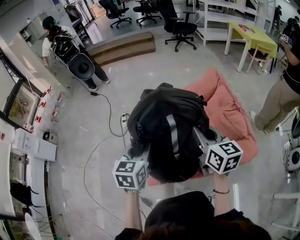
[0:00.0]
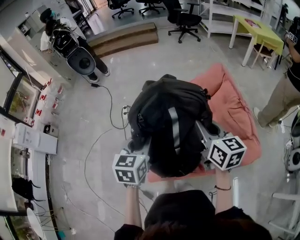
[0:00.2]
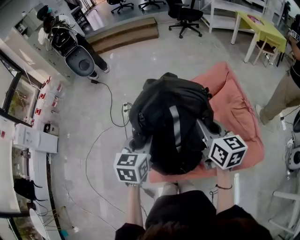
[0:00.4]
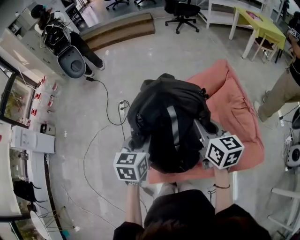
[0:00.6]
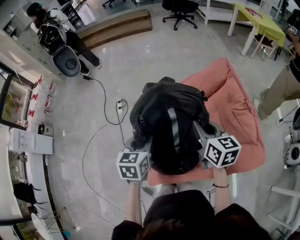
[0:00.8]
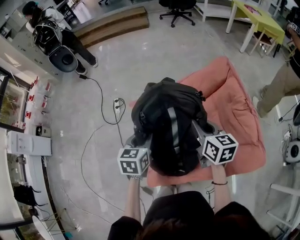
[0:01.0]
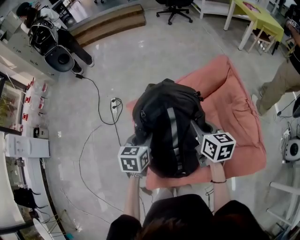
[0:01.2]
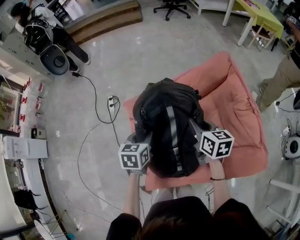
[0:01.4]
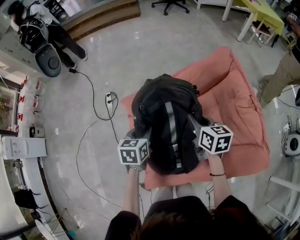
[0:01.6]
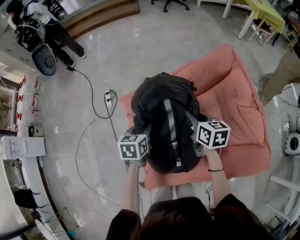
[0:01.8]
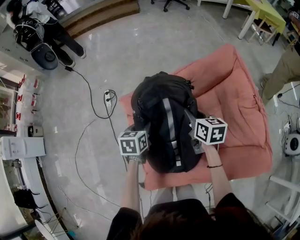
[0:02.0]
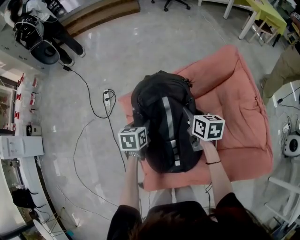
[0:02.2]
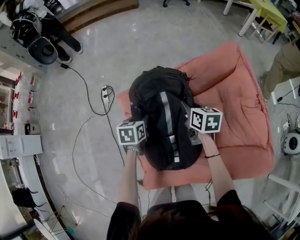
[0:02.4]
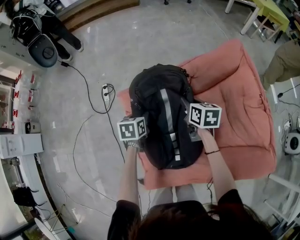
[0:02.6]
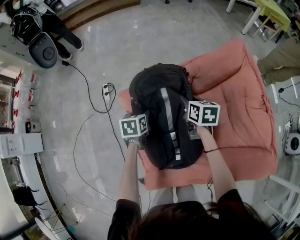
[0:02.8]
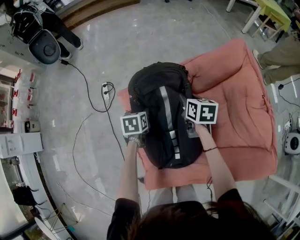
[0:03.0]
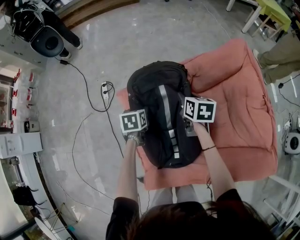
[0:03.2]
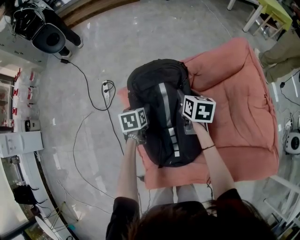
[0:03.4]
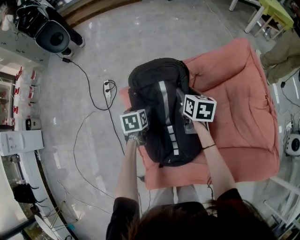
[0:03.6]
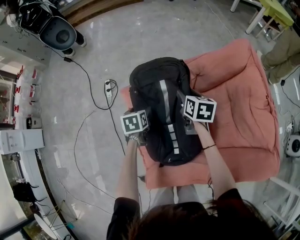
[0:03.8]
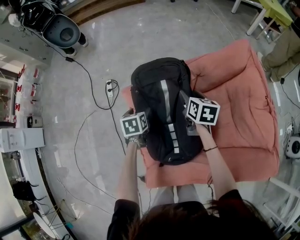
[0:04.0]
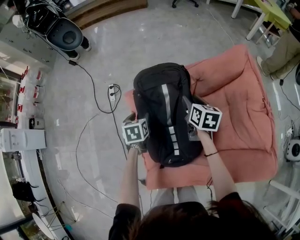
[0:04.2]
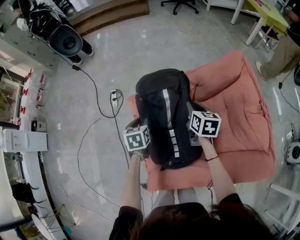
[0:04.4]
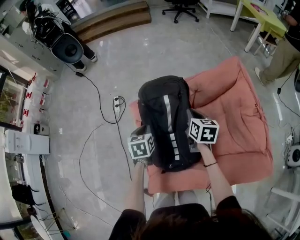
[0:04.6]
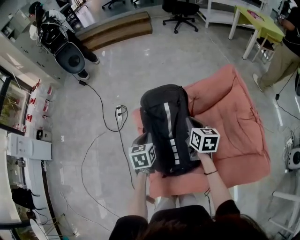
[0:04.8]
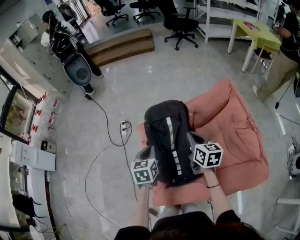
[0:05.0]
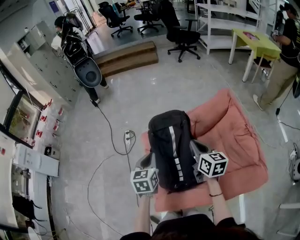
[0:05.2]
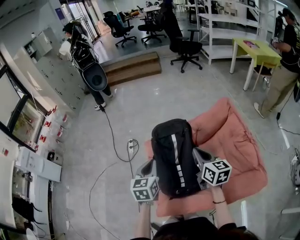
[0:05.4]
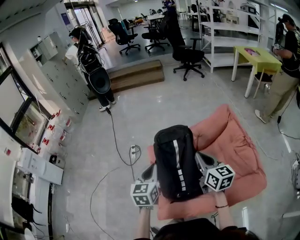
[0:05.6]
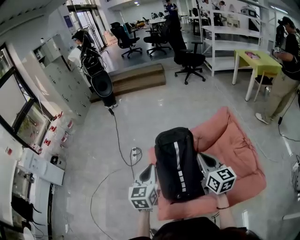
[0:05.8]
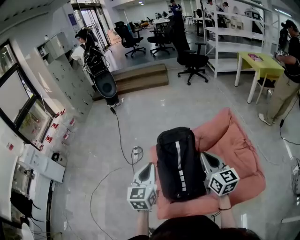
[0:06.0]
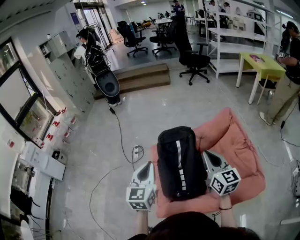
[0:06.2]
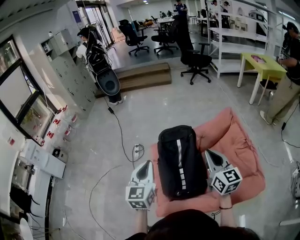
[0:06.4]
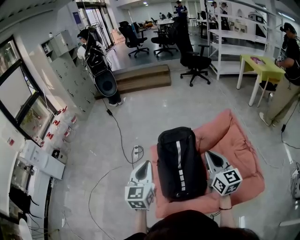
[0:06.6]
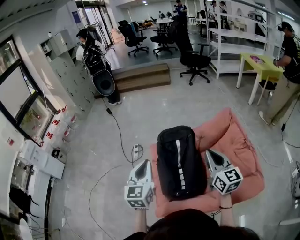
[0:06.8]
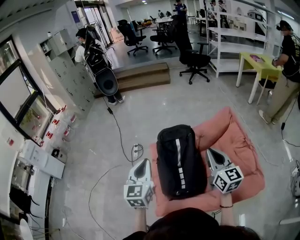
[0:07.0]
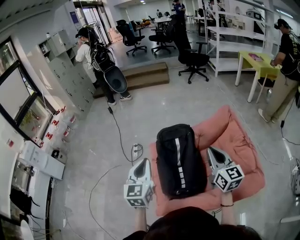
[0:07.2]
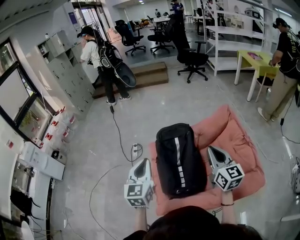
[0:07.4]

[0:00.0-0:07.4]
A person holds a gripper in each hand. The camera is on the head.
0.0 to 1.4 s: The two grippers go approximately 25 cm downward and forward.
1.4 to 3.0 s: The grippers both shift downward and forward by some 15 cm.
3.0 to 4.4 s: The left gripper shifts by about 5 cm, and opens, then closes again. The right gripper moves roughly 5 cm, and opens, then closes once more.
4.4 to 6.0 s: The grippers both shift upward and backward by approximately 35 cm. The left gripper points its fingers some 40 degrees further upward, and closes up. The right gripper tilts its fingers approximately 30 degrees upward.
6.0 to 7.4 s: There are only small adjustments of the grippers.

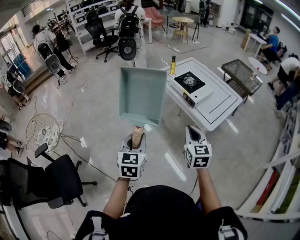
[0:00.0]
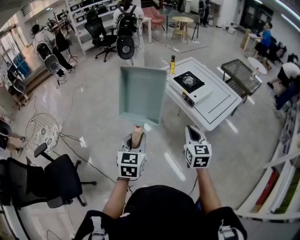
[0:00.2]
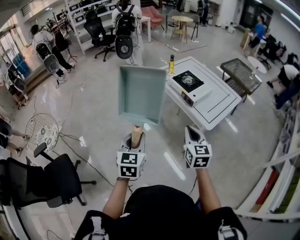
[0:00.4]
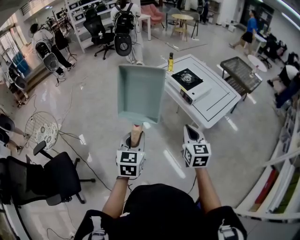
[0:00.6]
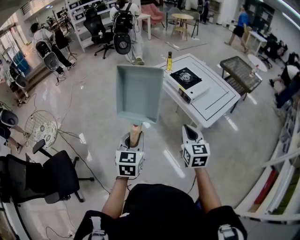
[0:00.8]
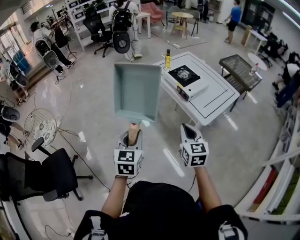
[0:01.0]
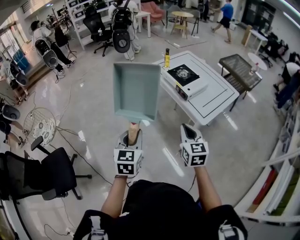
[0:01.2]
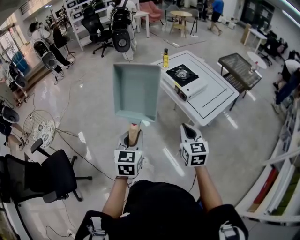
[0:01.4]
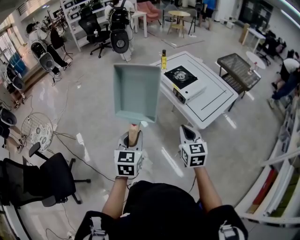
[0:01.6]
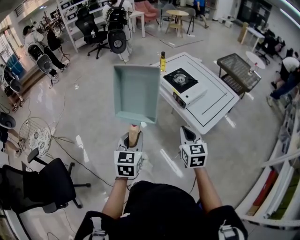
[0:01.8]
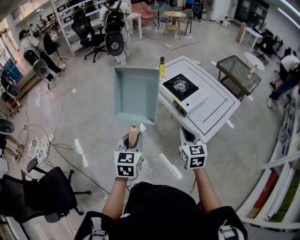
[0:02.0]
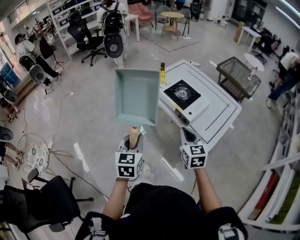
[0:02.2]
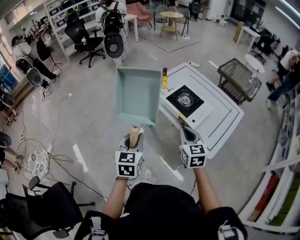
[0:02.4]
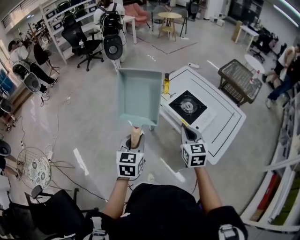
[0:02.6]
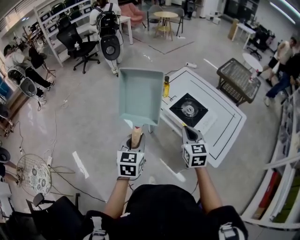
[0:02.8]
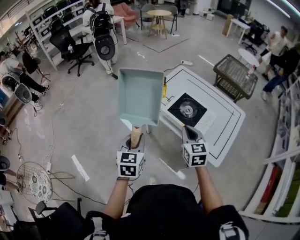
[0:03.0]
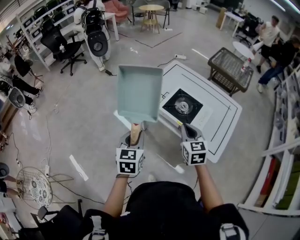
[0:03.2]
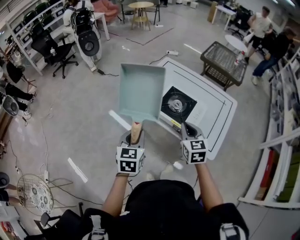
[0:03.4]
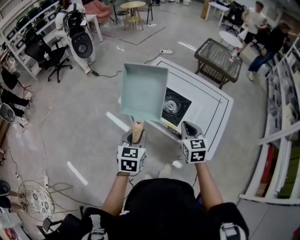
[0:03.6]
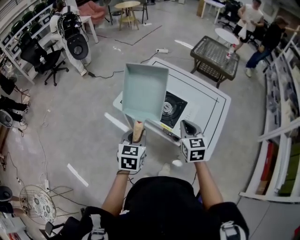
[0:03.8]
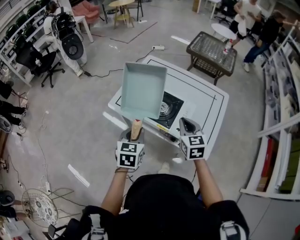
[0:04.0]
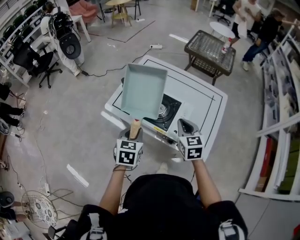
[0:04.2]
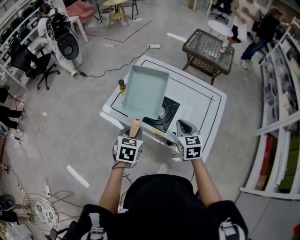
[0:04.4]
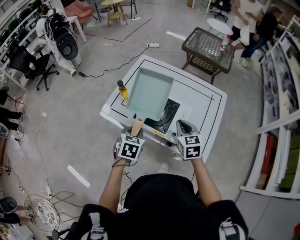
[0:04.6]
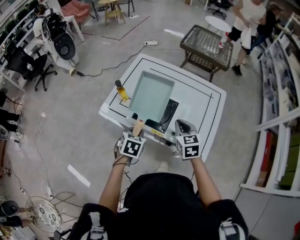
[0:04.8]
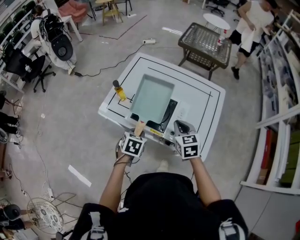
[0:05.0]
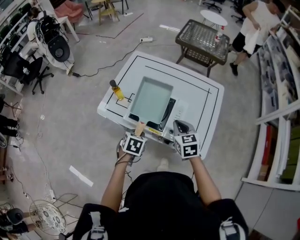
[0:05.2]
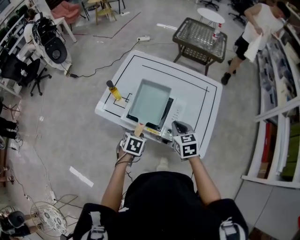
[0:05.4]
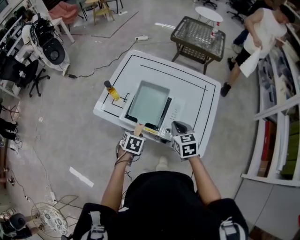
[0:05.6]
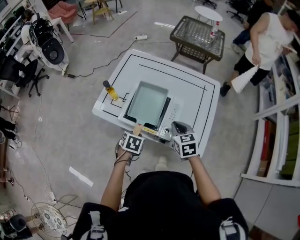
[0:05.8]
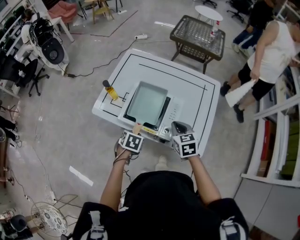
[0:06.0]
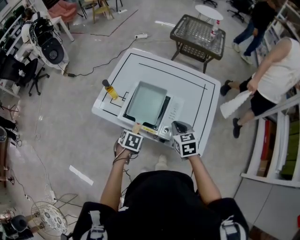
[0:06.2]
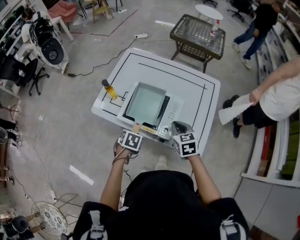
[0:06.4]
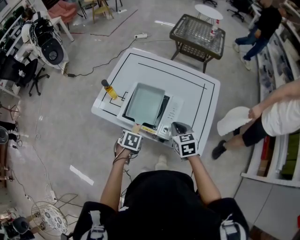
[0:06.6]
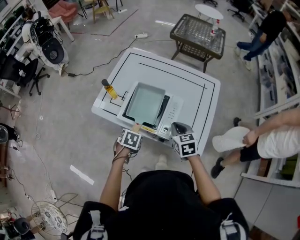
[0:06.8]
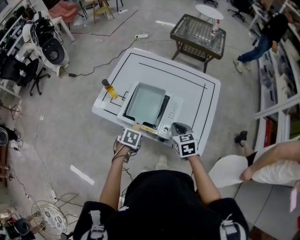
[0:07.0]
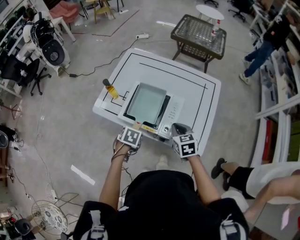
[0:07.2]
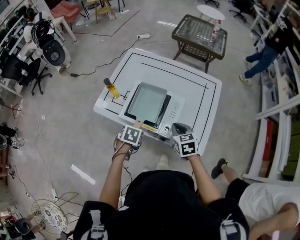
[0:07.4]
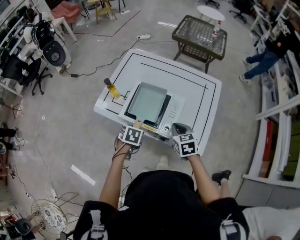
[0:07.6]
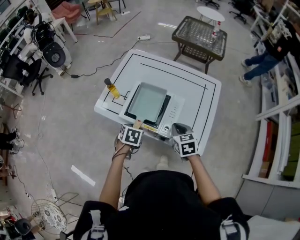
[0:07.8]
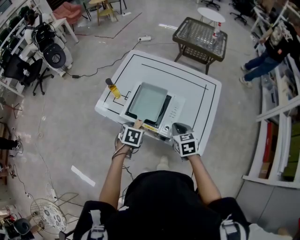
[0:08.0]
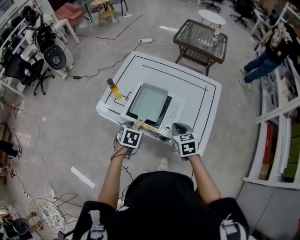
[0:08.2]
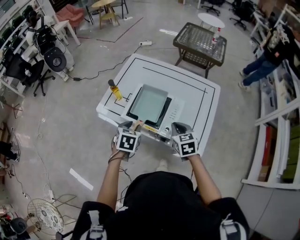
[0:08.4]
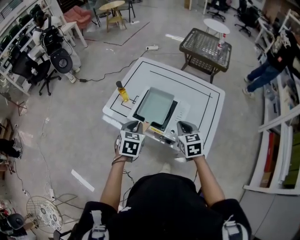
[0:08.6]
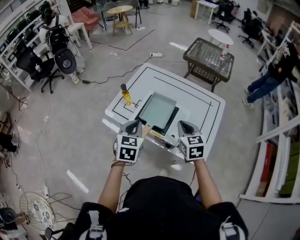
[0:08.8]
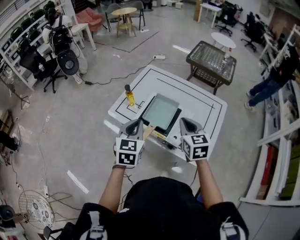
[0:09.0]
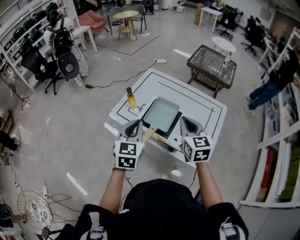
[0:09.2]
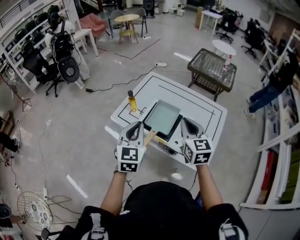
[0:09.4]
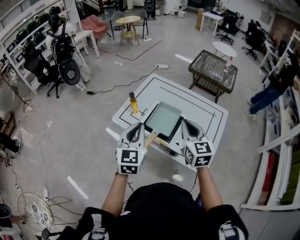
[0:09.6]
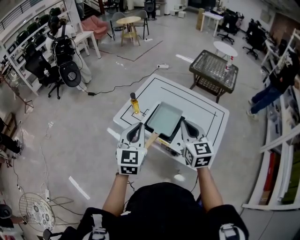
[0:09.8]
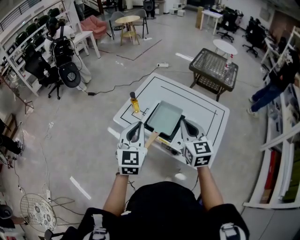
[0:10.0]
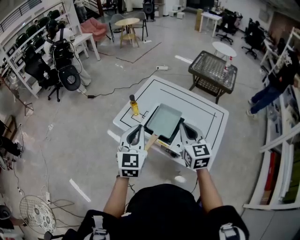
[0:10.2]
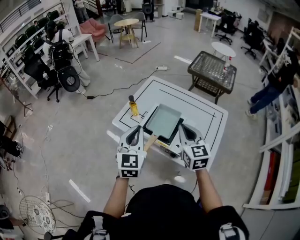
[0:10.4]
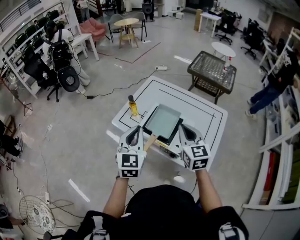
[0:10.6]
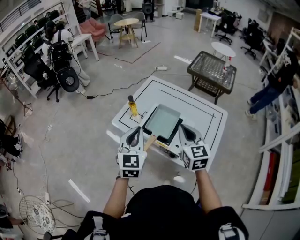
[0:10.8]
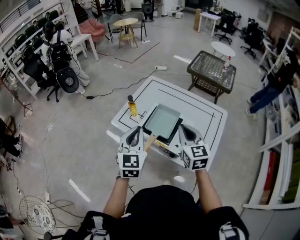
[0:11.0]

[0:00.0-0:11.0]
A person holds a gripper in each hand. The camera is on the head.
0.0 to 1.6 s: Both grippers move to the right, some 5 cm.
1.6 to 3.2 s: Both grippers travel together forward, roughly 35 cm.
3.2 to 4.8 s: The right gripper is displaced to the right, forward and downward by about 15 cm. The left gripper travels forward, to the right and downward by about 25 cm, and changes its angle by about 40 degrees.
4.8 to 6.2 s: The right gripper shifts by about 5 cm, while the left gripper heads downward, covering some 10 cm.
6.2 to 7.8 s: The left gripper opens up.
7.8 to 9.4 s: The two grippers go some 25 cm upward. The left gripper angles its fingers upward, by approximately 50 degrees, and closes up. Meanwhile the right gripper swivels roughly 30 degrees.
9.4 to 11.0 s: There are only small adjustments of the grippers.

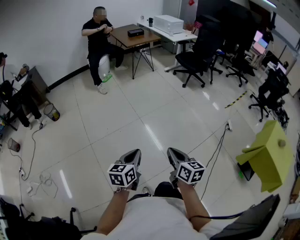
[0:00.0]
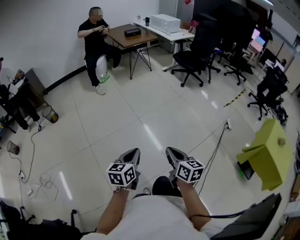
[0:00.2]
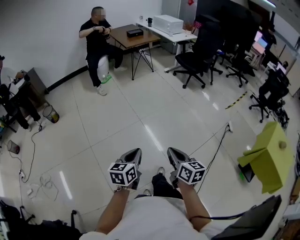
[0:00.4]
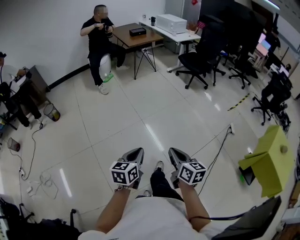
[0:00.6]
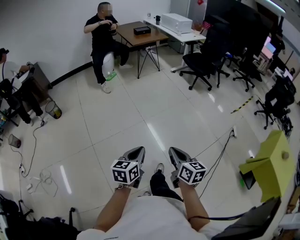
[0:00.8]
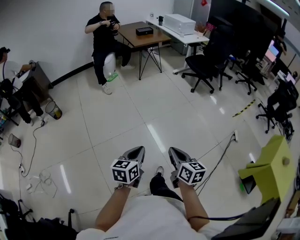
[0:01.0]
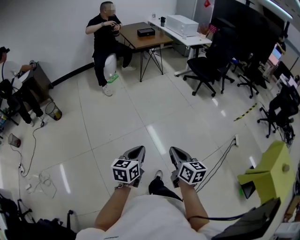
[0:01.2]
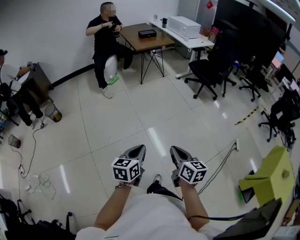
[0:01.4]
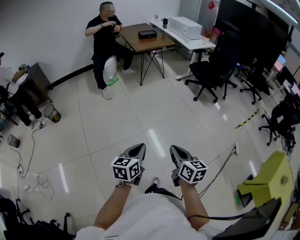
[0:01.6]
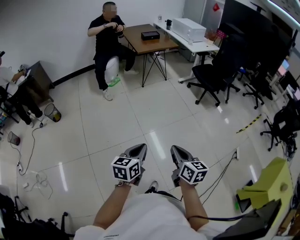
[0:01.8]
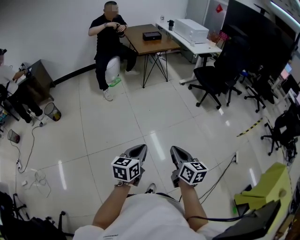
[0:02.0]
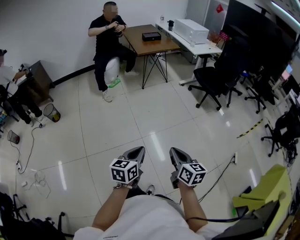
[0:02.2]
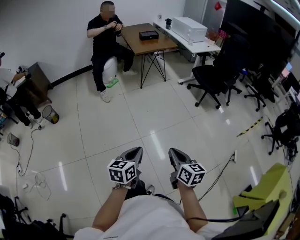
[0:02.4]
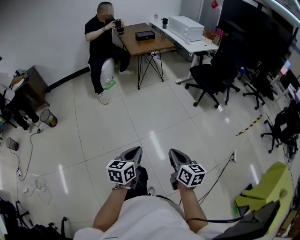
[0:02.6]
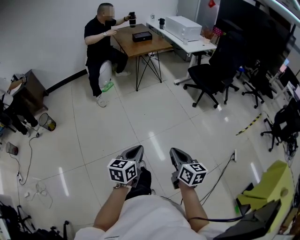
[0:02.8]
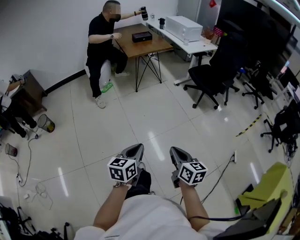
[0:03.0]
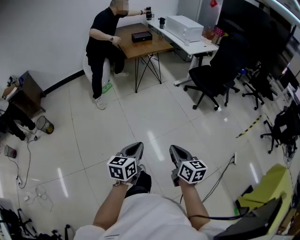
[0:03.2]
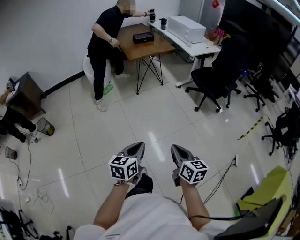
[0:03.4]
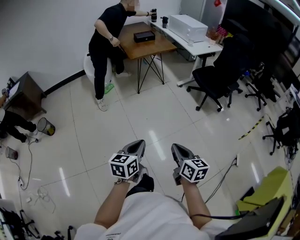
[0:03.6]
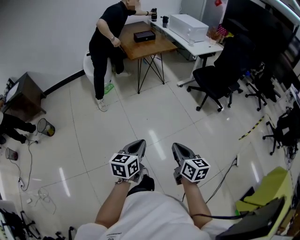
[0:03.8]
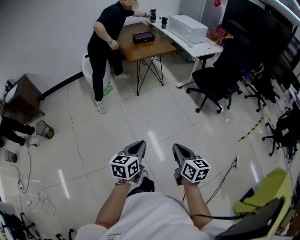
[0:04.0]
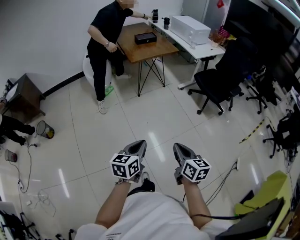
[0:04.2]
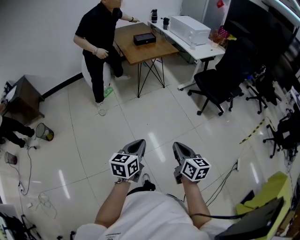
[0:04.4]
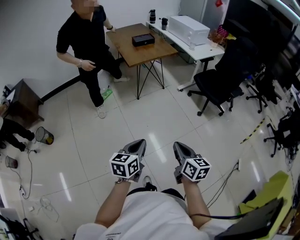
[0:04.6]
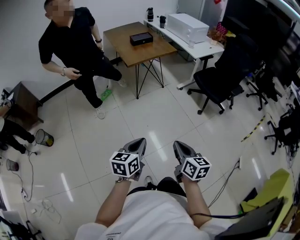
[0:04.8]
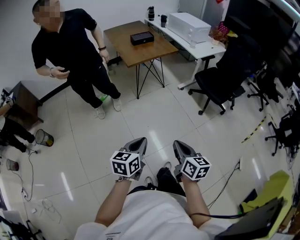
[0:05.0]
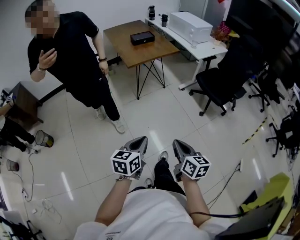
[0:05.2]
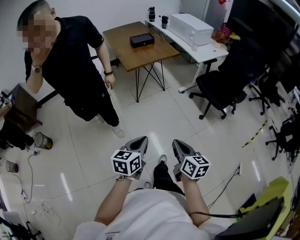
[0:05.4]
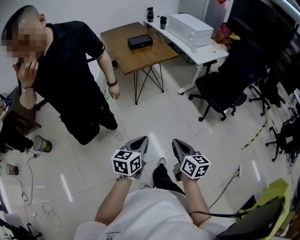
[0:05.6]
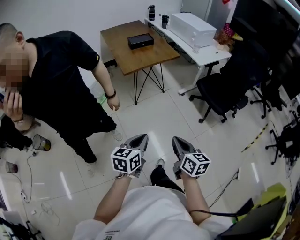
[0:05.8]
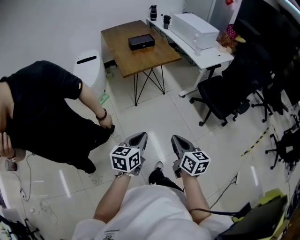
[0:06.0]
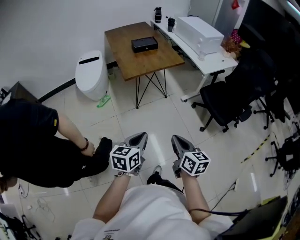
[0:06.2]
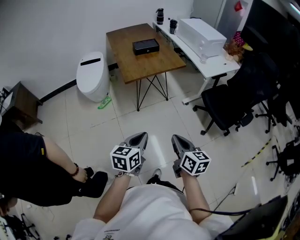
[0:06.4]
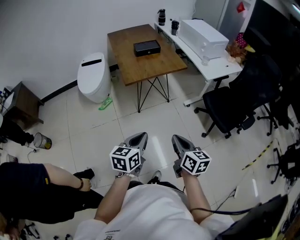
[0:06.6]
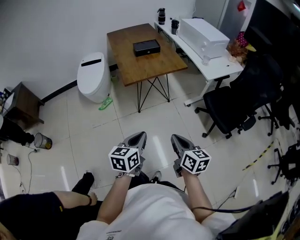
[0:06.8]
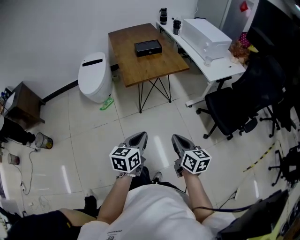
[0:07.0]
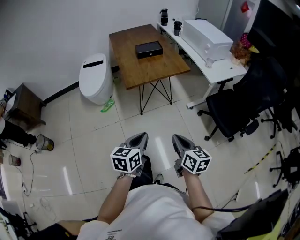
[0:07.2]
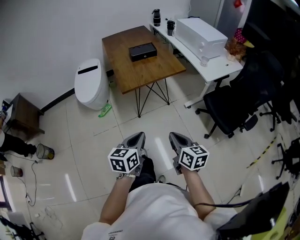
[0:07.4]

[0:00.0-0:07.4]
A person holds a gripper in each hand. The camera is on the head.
0.0 to 1.4 s: The two grippers go approximately 25 cm forward.
1.4 to 3.0 s: Both grippers move forward, roughly 25 cm.
3.0 to 4.4 s: Both grippers move forward, approximately 20 cm.
4.4 to 6.0 s: The grippers both shift forward by approximately 30 cm.
6.0 to 7.4 s: The two grippers go roughly 15 cm forward.
